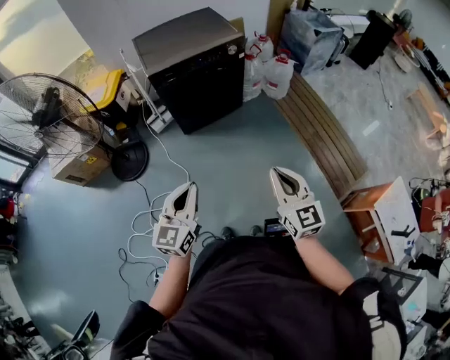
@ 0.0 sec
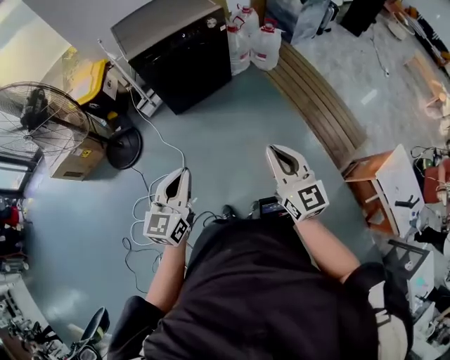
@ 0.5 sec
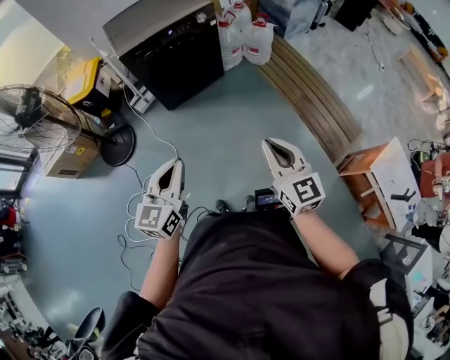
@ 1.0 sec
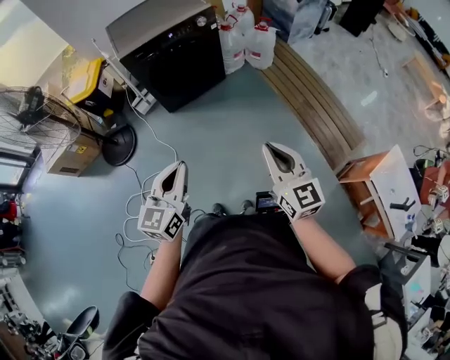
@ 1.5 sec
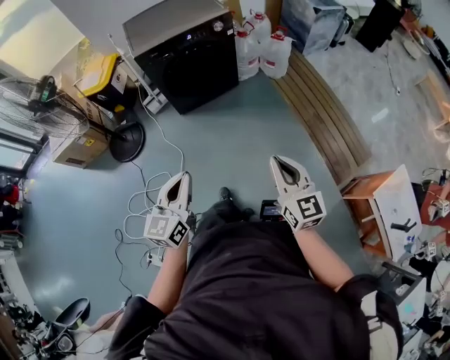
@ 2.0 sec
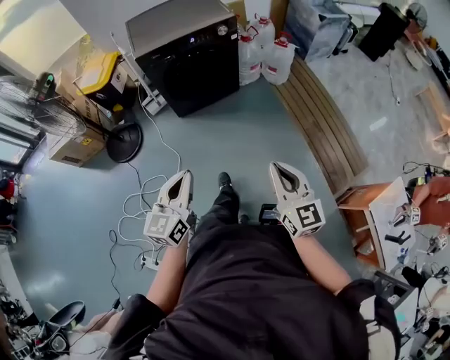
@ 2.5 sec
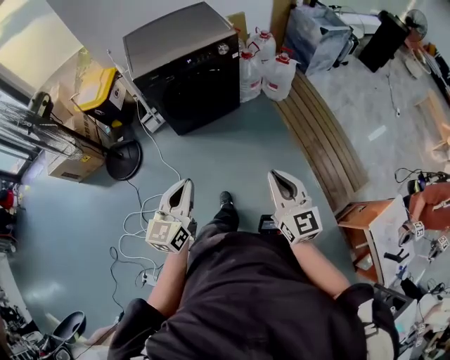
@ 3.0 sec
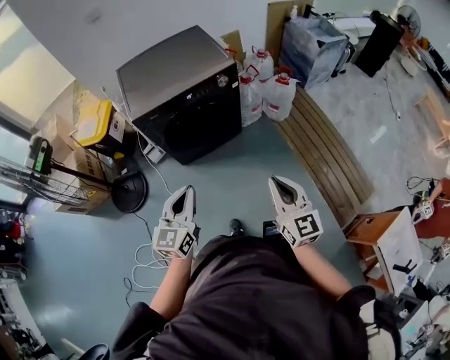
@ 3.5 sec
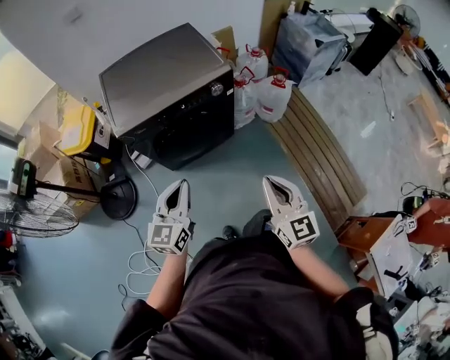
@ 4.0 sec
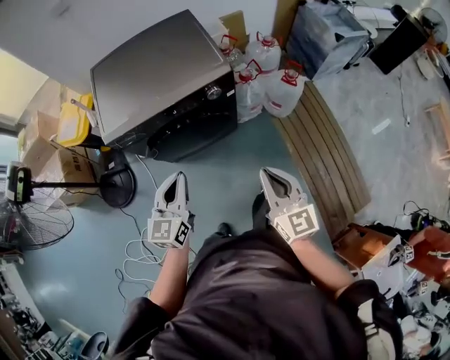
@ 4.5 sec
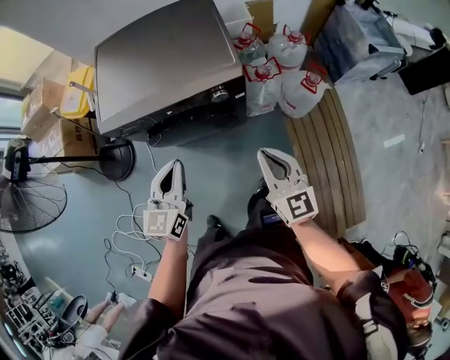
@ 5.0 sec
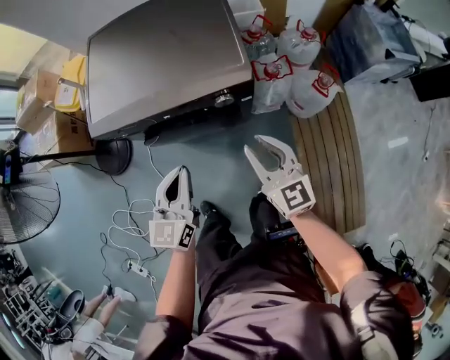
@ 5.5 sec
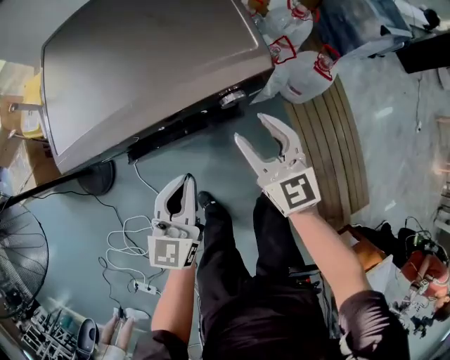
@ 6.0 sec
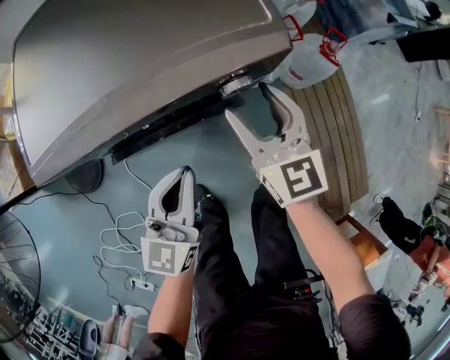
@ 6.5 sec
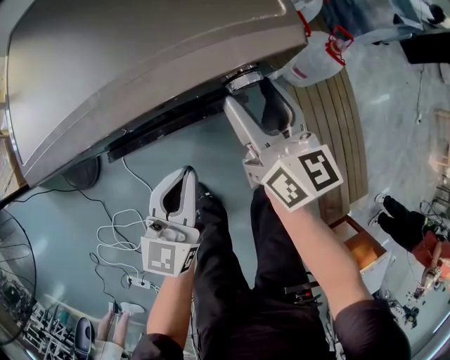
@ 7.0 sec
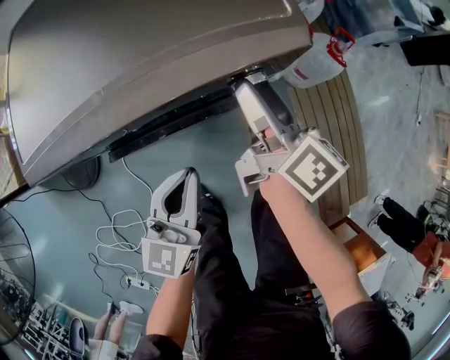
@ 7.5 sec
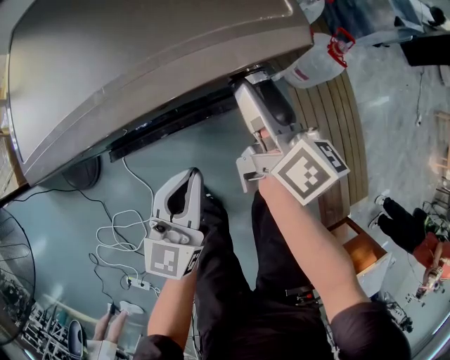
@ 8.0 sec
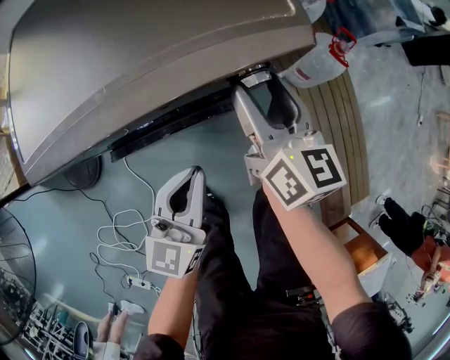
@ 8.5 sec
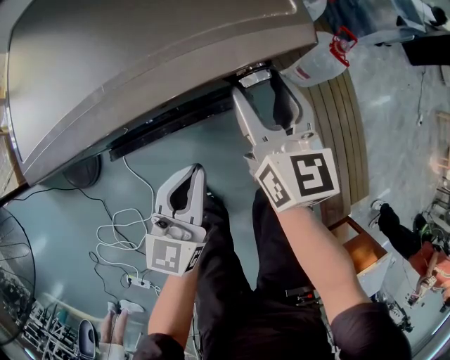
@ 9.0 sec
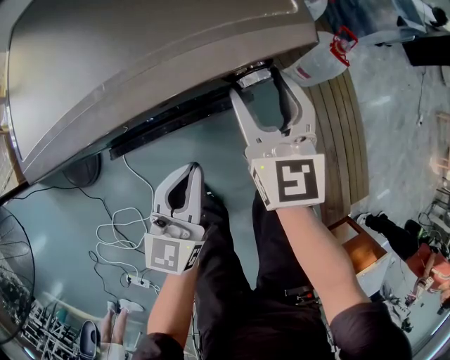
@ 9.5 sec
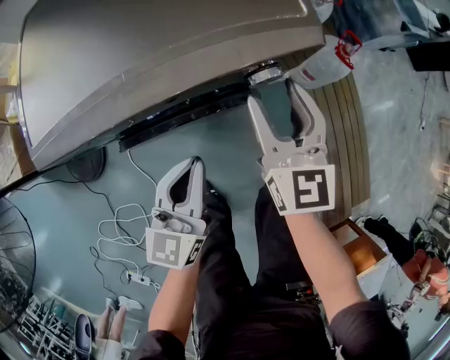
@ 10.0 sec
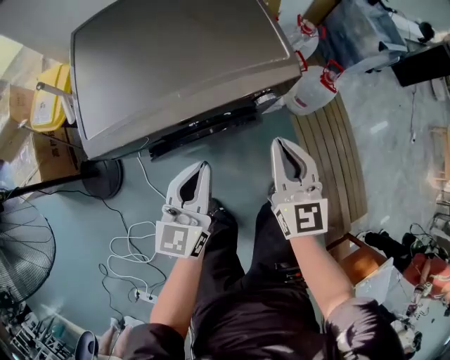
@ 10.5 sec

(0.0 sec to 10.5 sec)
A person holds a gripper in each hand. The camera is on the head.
0.0 sec - 2.0 sec: The grippers both shift to the right by approximately 10 cm.
2.0 sec - 4.0 sec: The two grippers go some 40 cm forward.
4.0 sec - 6.5 sec: Both grippers travel together forward and downward, approximately 40 cm. The right gripper opens its fingers.
6.5 sec - 8.5 sec: The right gripper rotates some 30 degrees.
8.5 sec - 10.5 sec: The left gripper goes about 10 cm upward and to the left, while the right gripper is displaced backward and upward by some 15 cm, turns by approximately 30 degrees, and closes up.

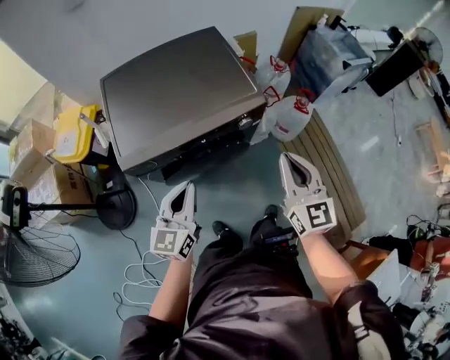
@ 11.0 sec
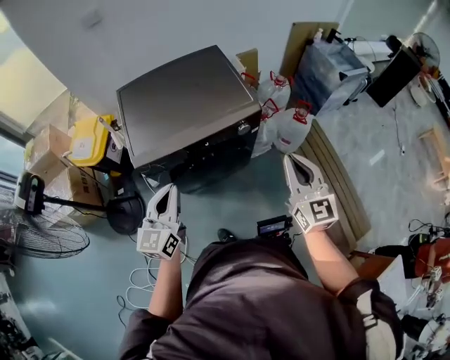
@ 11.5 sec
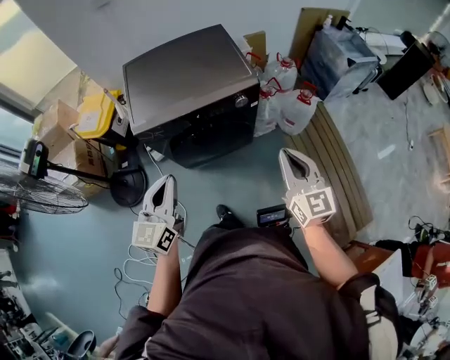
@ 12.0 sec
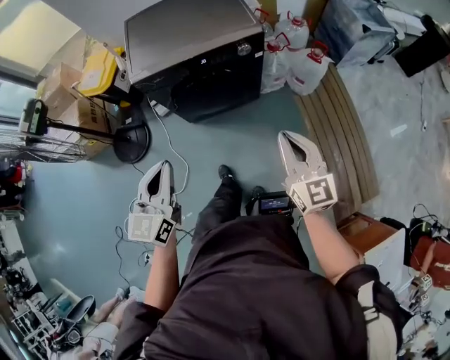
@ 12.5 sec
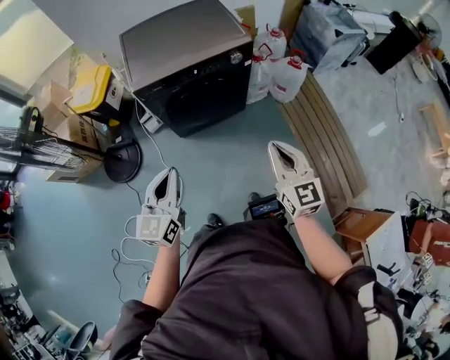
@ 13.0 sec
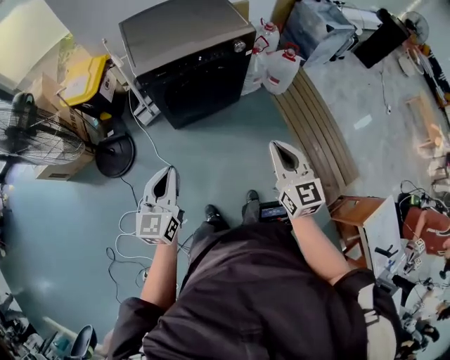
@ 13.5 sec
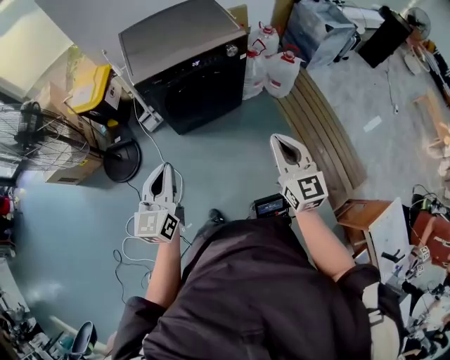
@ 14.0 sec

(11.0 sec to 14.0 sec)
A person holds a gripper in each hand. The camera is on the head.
11.0 sec - 12.5 sec: The grippers both shift backward by approximately 25 cm.
12.5 sec - 14.0 sec: The two grippers go some 15 cm backward and to the left.

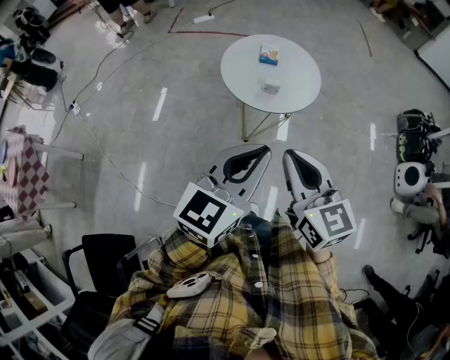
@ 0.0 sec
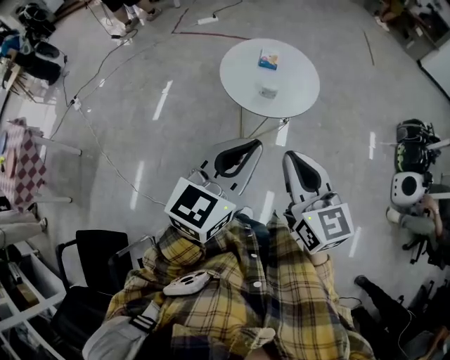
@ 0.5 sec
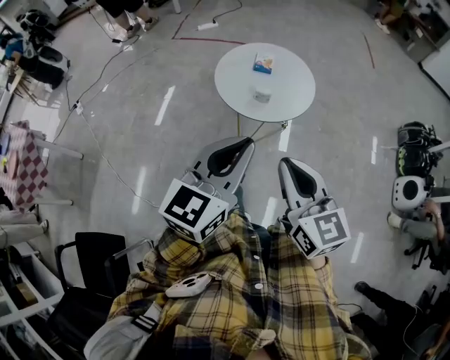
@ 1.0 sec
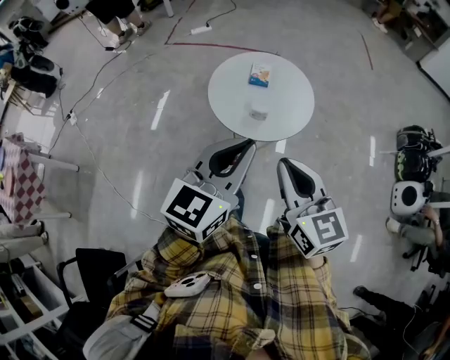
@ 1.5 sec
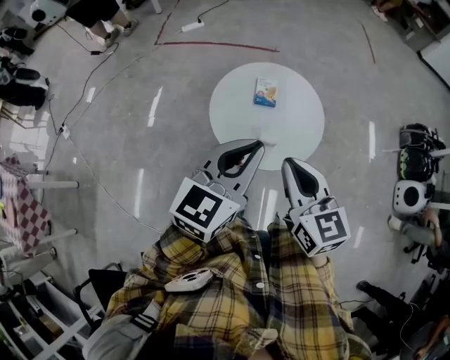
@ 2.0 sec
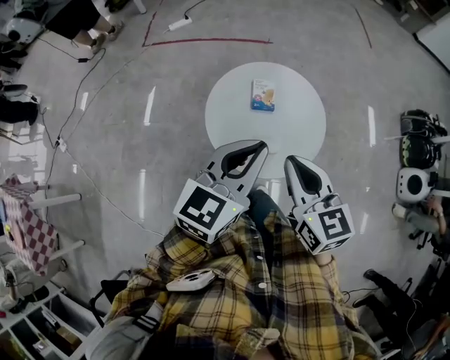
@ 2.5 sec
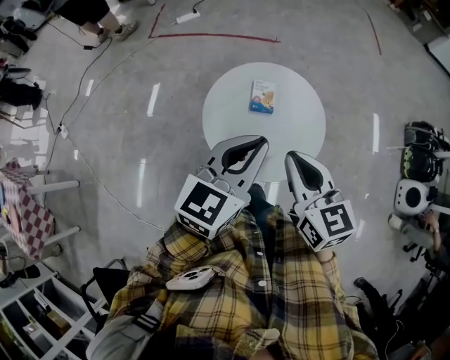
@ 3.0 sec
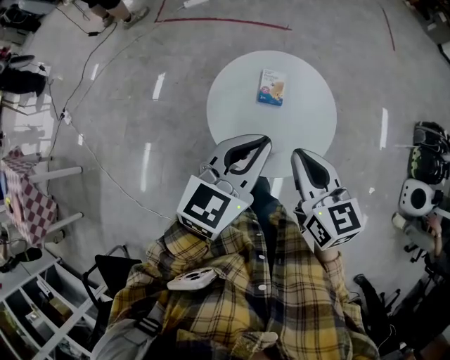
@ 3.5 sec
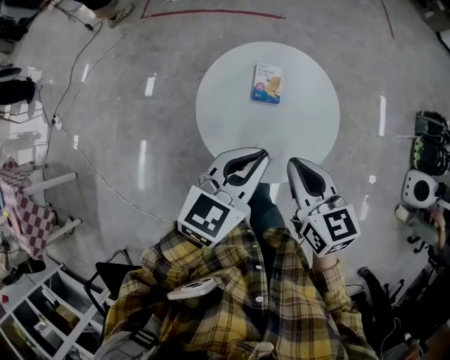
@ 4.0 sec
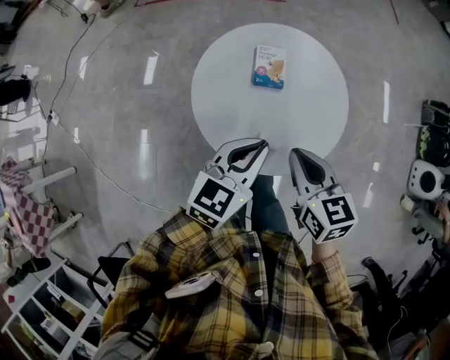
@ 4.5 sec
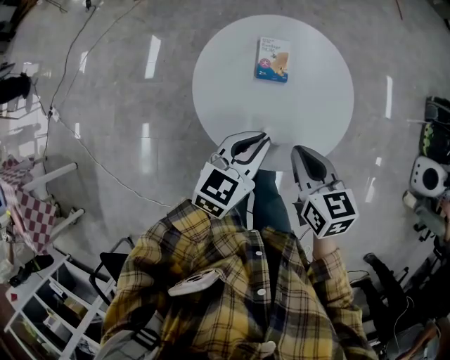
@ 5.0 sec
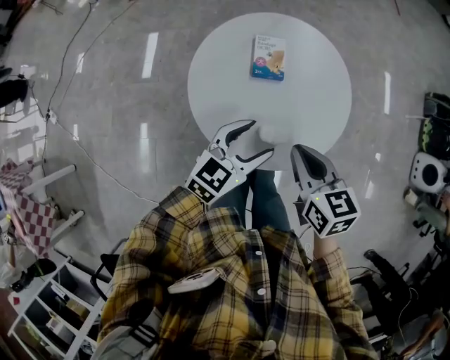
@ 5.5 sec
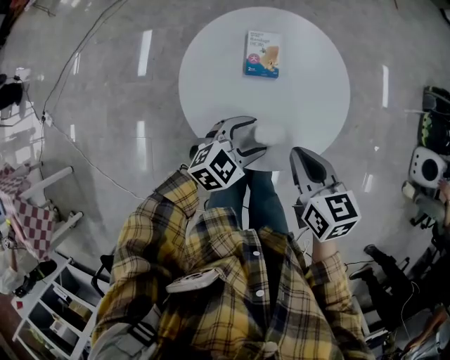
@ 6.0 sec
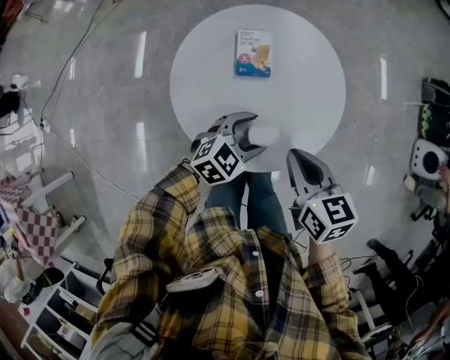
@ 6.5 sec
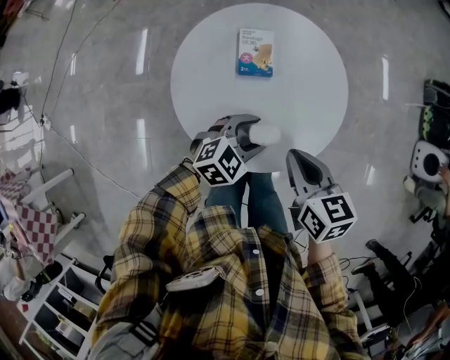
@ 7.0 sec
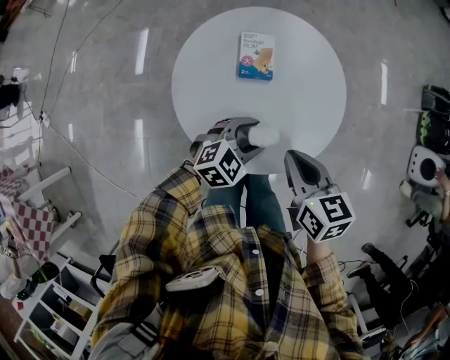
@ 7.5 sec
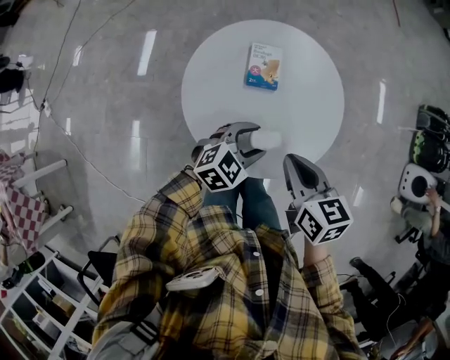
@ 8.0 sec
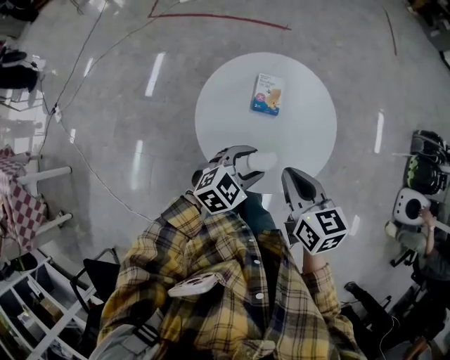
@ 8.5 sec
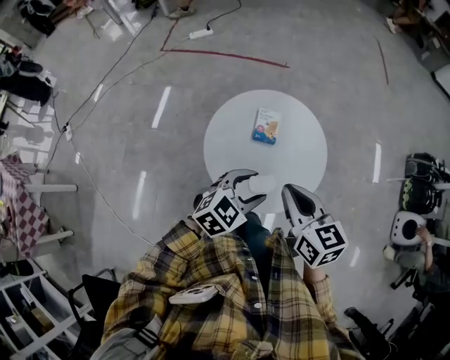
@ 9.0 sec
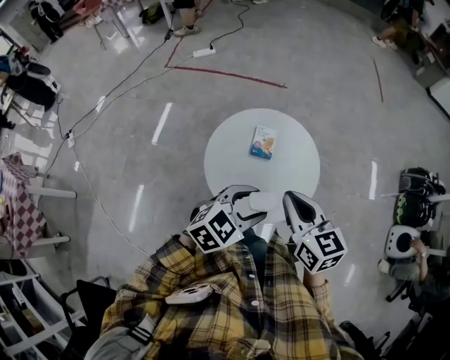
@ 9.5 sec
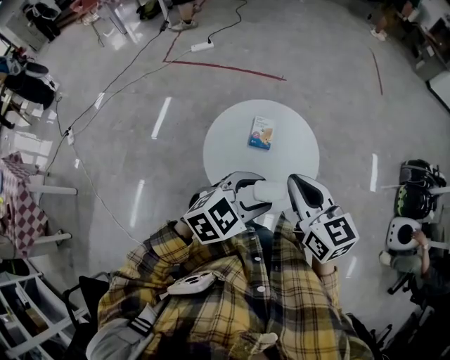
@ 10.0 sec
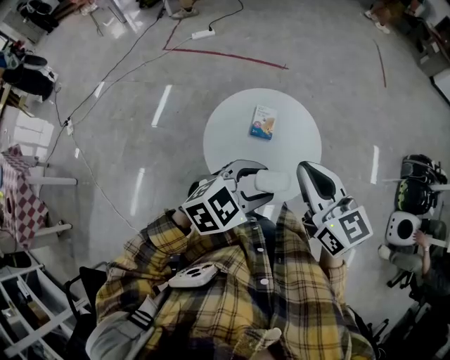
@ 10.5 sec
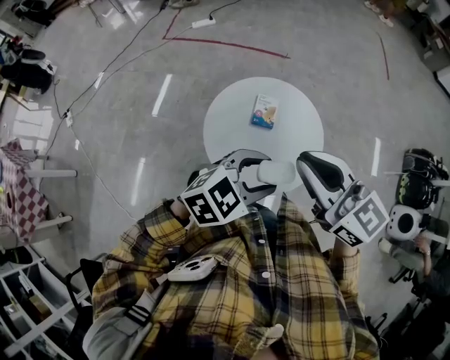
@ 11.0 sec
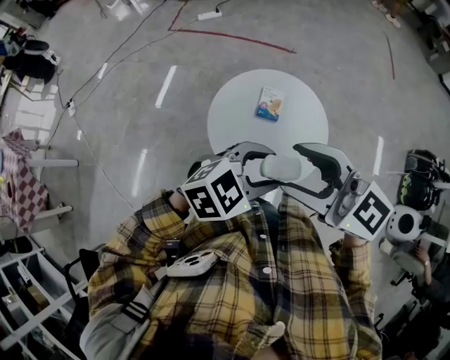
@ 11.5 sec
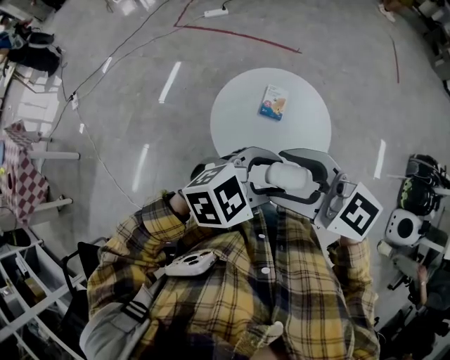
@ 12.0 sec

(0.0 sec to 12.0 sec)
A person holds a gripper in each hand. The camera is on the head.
0.0 sec - 2.0 sec: Both grippers travel together forward, about 25 cm.
2.0 sec - 4.0 sec: Both grippers move downward and forward, approximately 15 cm.
4.0 sec - 6.0 sec: The left gripper goes approximately 20 cm downward, changes its angle by roughly 30 degrees, and opens. Meanwhile the right gripper shifts about 10 cm downward.
6.0 sec - 8.0 sec: The grippers stay close to where they were, moving slightly.
8.0 sec - 10.0 sec: Both grippers move upward, about 25 cm. The right gripper swivels approximately 30 degrees.
10.0 sec - 12.0 sec: The right gripper ends up about 10 cm from where it was, changes its angle by some 50 degrees, and opens up.

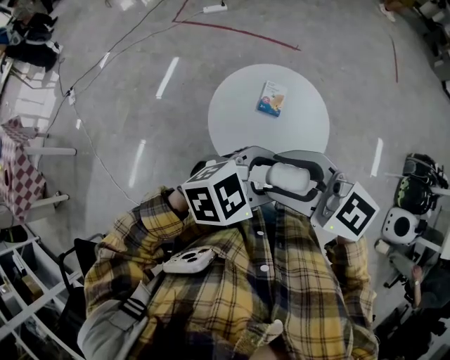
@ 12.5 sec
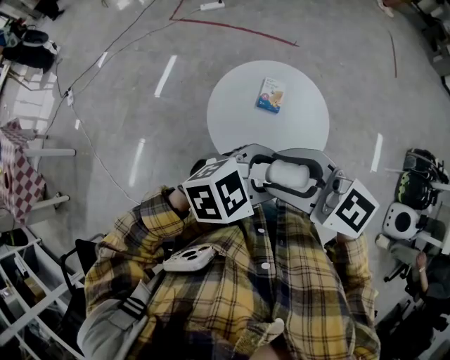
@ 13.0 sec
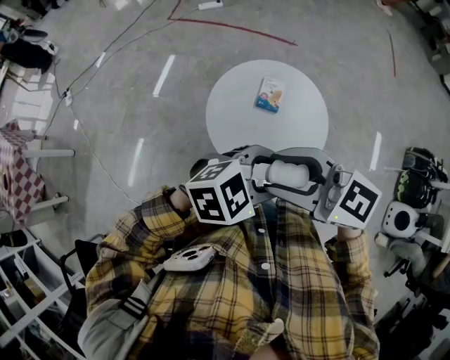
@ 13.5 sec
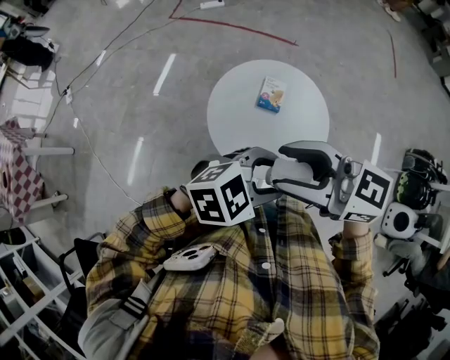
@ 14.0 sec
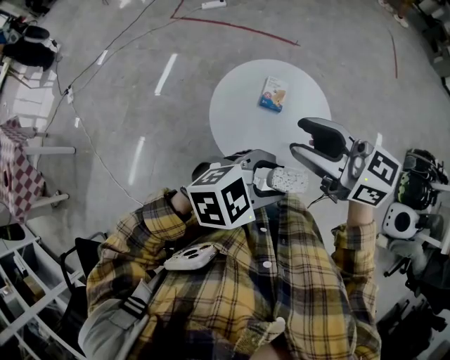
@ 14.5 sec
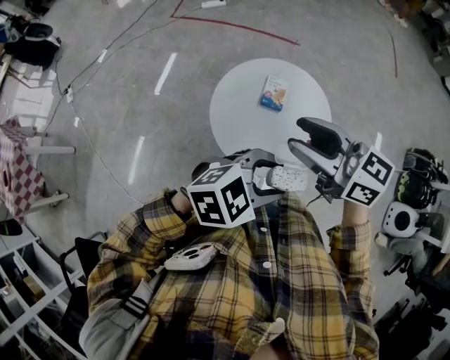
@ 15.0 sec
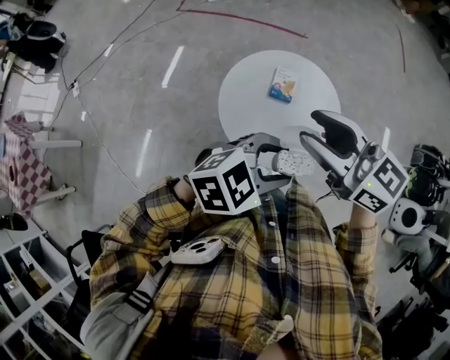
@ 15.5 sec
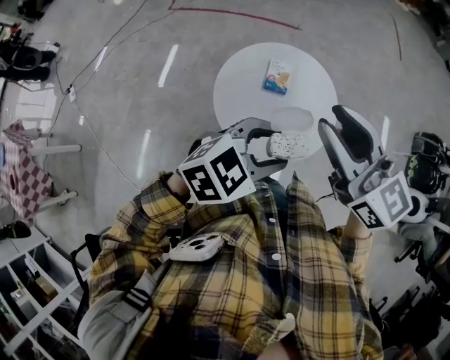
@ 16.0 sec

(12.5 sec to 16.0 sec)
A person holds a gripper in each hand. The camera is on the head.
12.5 sec - 14.5 sec: The right gripper changes place by approximately 10 cm, and rotates approximately 20 degrees.
14.5 sec - 16.0 sec: The right gripper rotates some 30 degrees.
